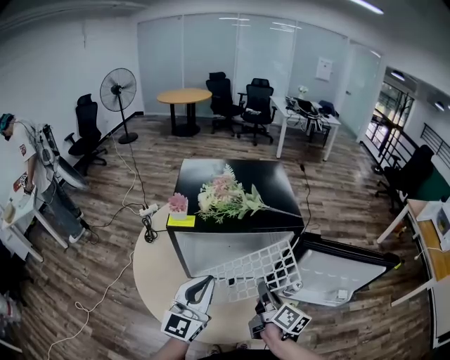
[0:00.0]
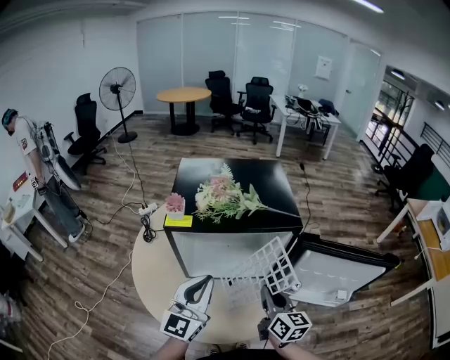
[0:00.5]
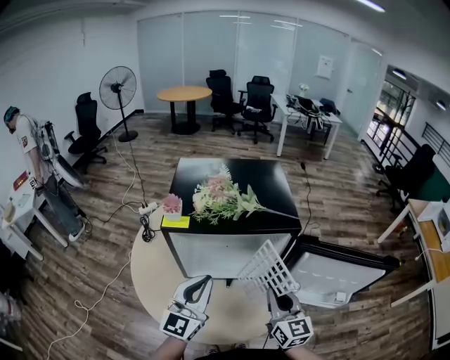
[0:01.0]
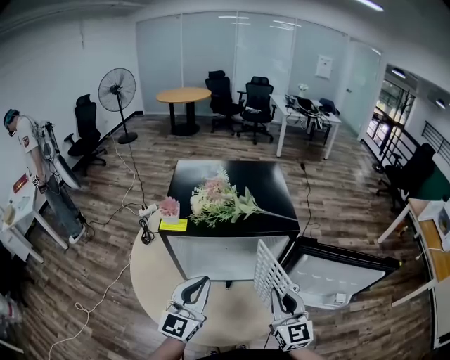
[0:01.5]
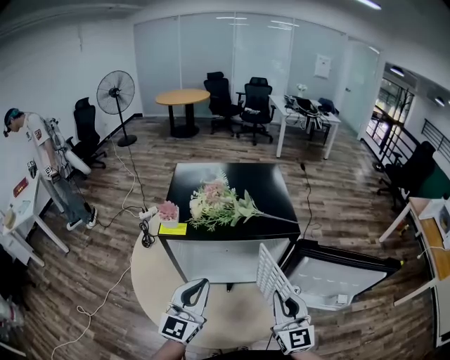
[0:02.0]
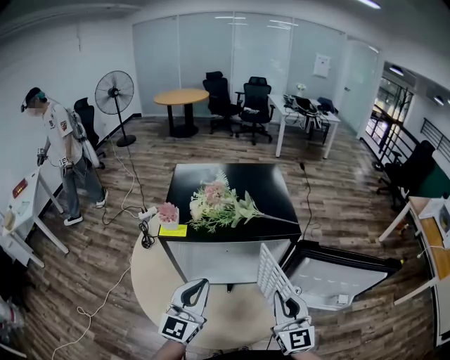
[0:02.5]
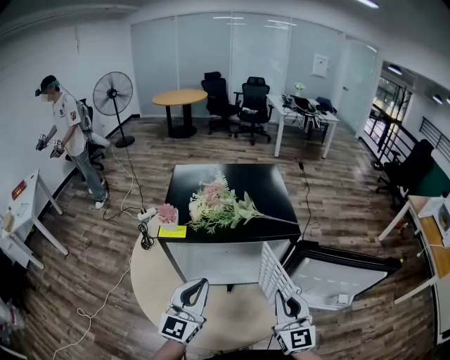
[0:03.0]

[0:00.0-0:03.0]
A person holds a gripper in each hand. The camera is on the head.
0:00.0 to 0:01.5: The right gripper shifts about 5 cm upward, and rolls counterclockwise, seen from behind, by some 60 degrees.
0:01.5 to 0:03.0: There are only small adjustments of the grippers.

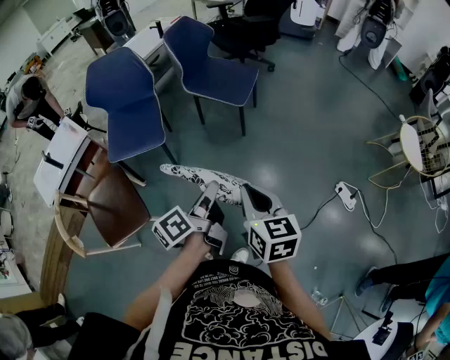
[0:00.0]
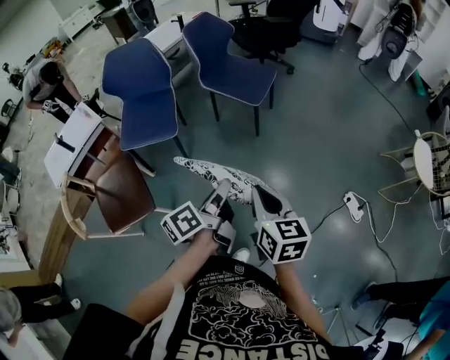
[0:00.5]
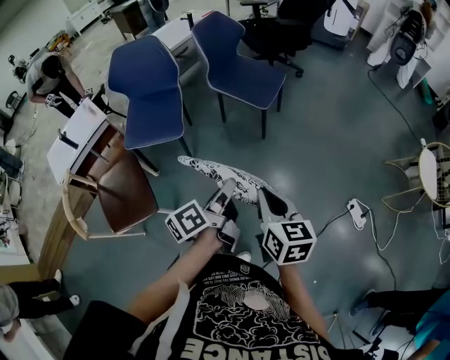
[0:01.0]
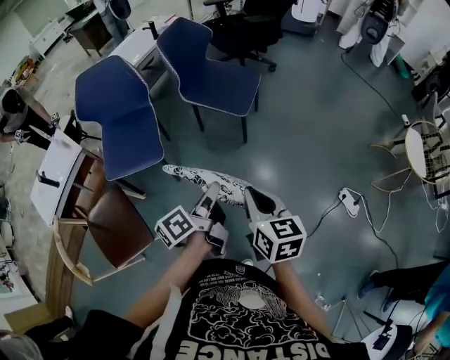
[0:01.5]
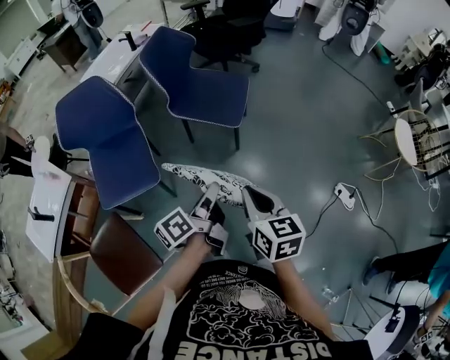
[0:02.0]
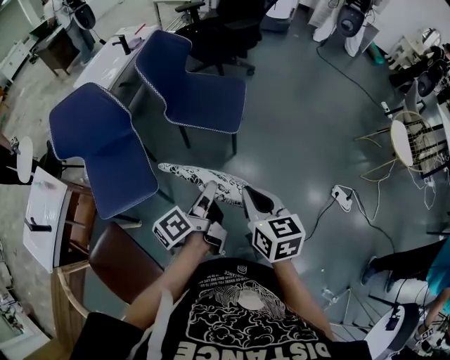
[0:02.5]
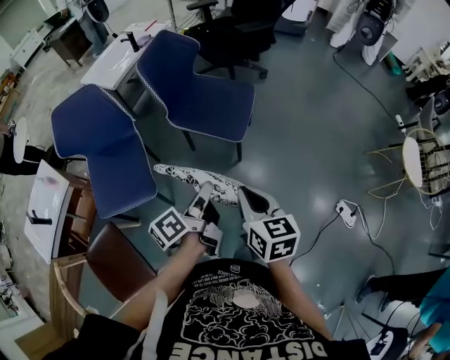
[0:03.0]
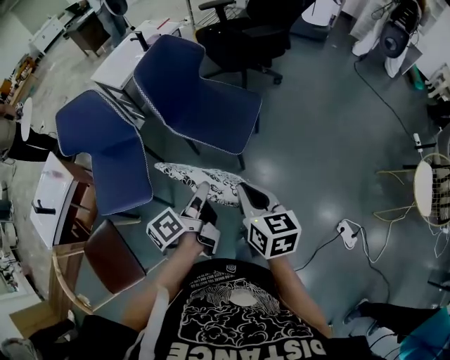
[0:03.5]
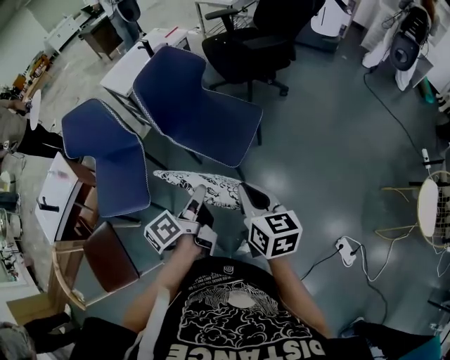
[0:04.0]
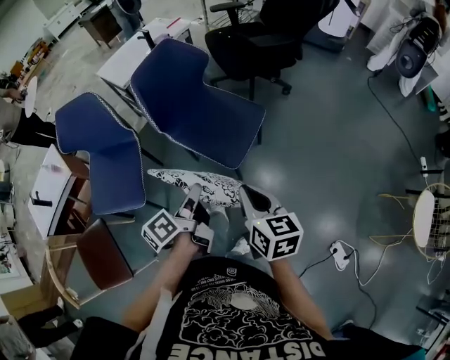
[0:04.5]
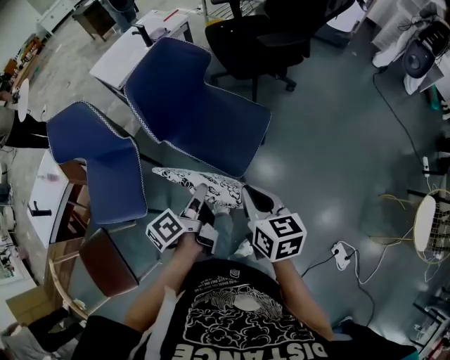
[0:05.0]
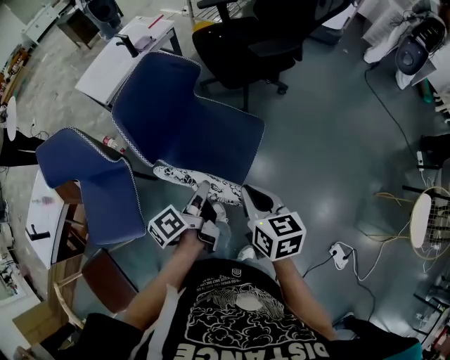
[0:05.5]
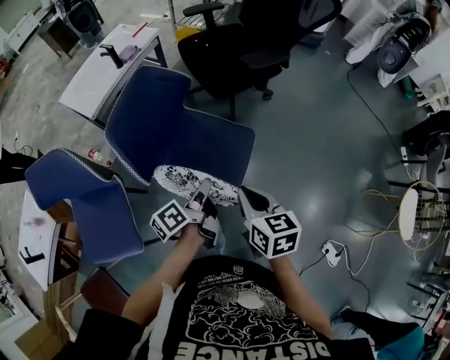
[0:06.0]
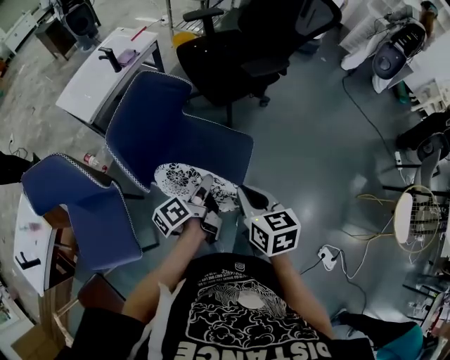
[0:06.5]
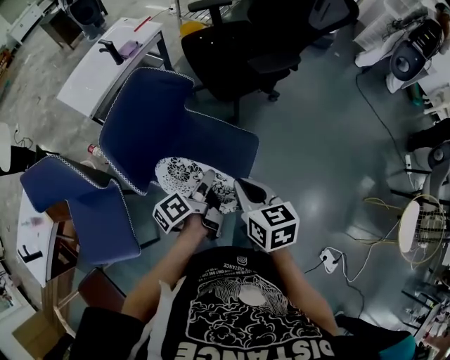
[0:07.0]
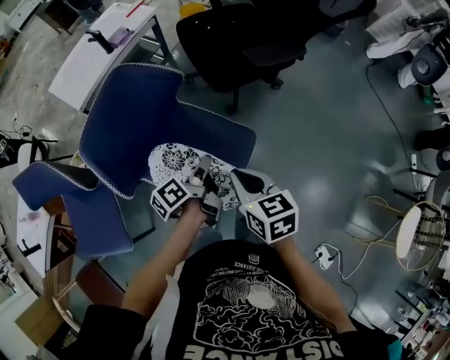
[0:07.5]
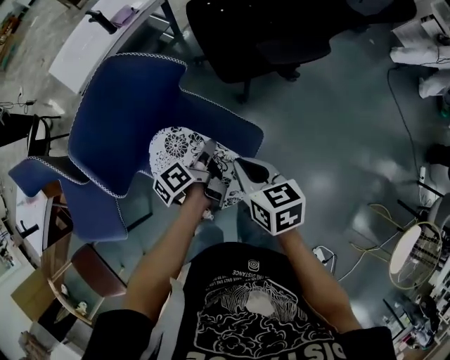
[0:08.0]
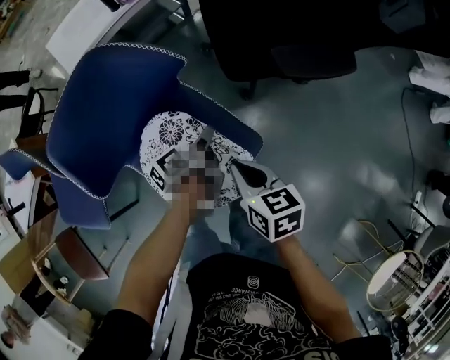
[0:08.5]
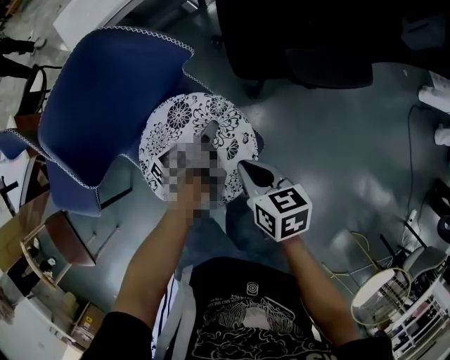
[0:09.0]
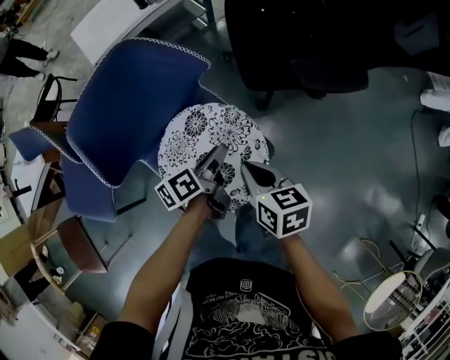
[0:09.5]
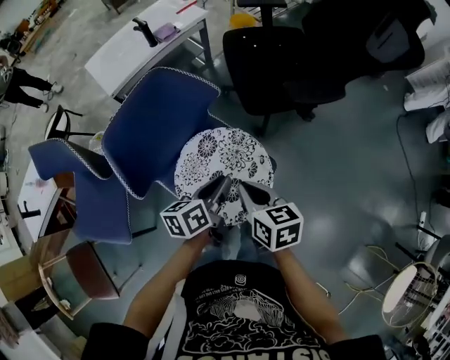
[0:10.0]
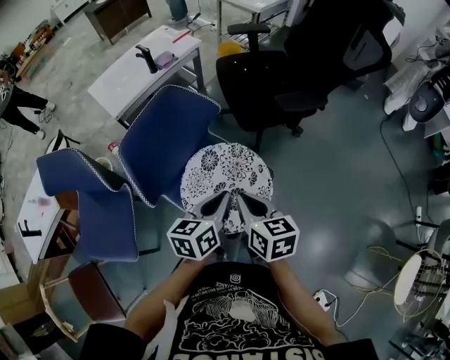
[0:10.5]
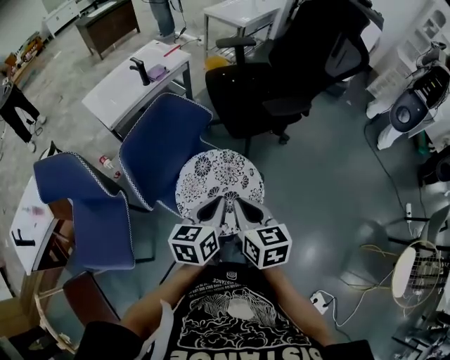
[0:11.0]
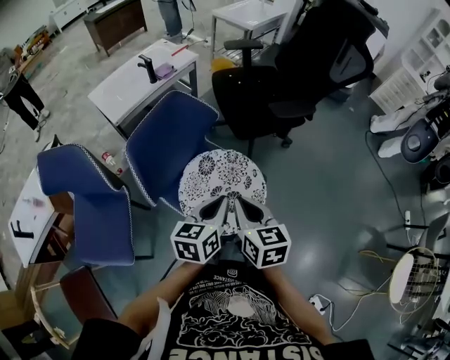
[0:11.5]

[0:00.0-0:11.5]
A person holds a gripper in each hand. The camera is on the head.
0:00.0 to 0:02.0: The right gripper ends up about 20 cm from where it was.
0:02.0 to 0:04.0: The right gripper ends up approximately 25 cm from where it was.
0:04.0 to 0:06.0: The right gripper changes place by about 20 cm.
0:06.0 to 0:07.5: The right gripper moves approximately 15 cm.
0:07.5 to 0:09.5: The right gripper is displaced downward by some 10 cm.
0:09.5 to 0:11.5: The right gripper heads upward, covering approximately 15 cm, and turns by about 30 degrees.

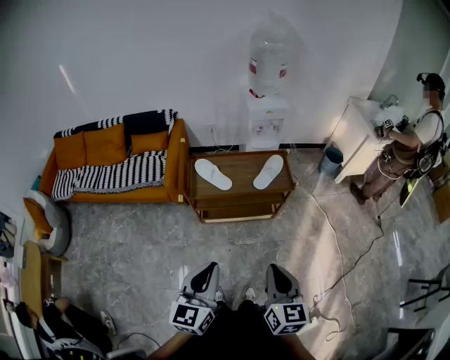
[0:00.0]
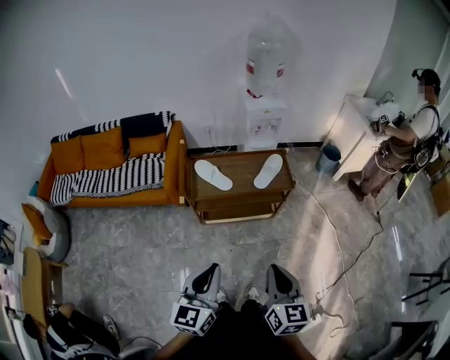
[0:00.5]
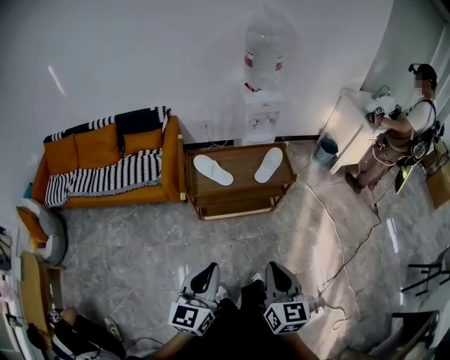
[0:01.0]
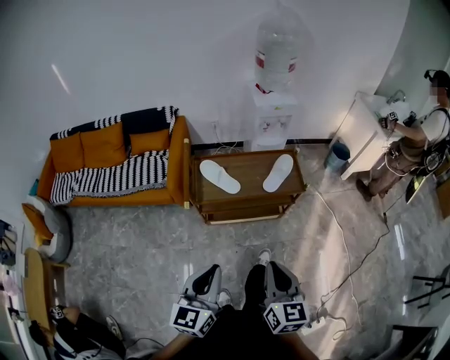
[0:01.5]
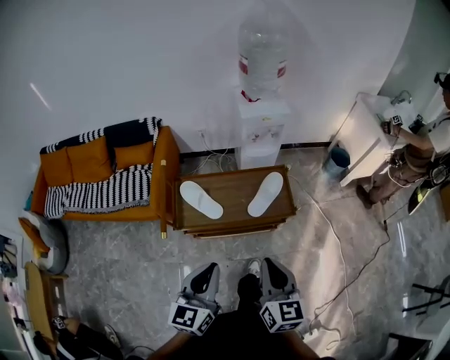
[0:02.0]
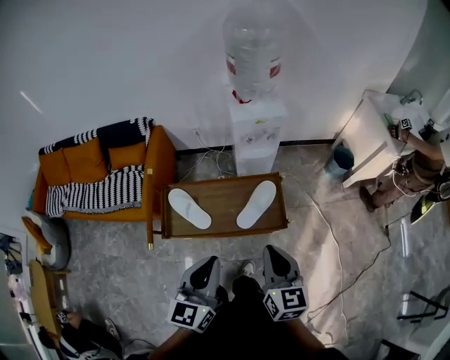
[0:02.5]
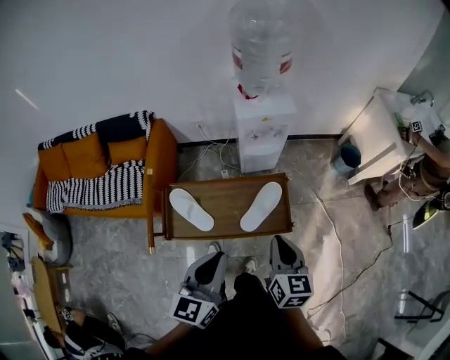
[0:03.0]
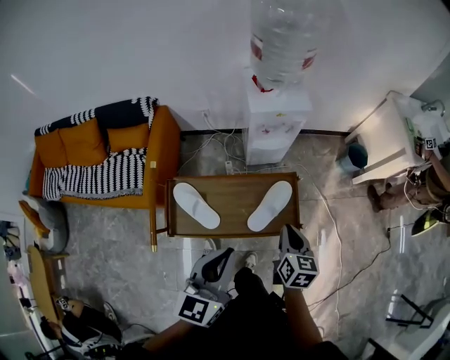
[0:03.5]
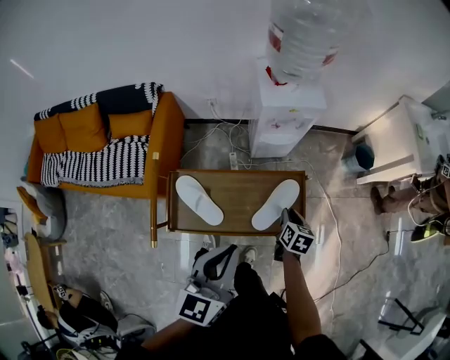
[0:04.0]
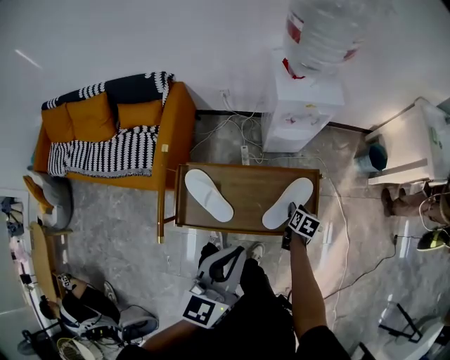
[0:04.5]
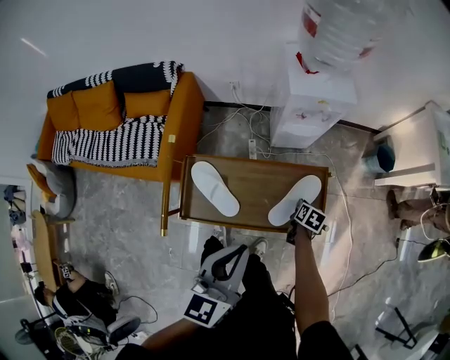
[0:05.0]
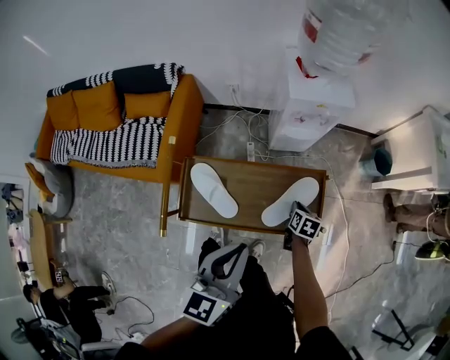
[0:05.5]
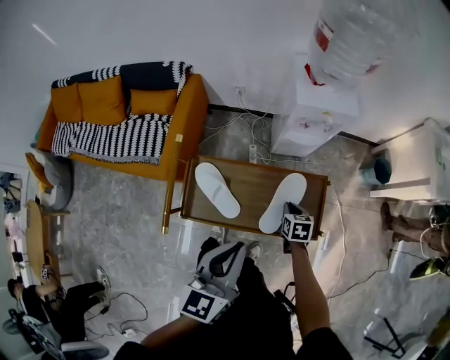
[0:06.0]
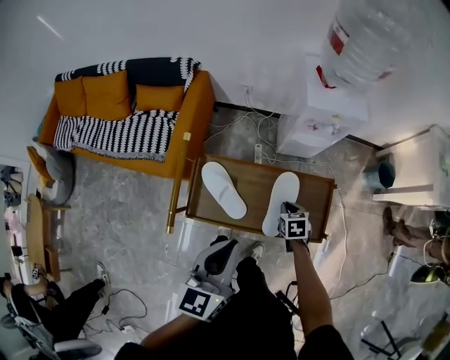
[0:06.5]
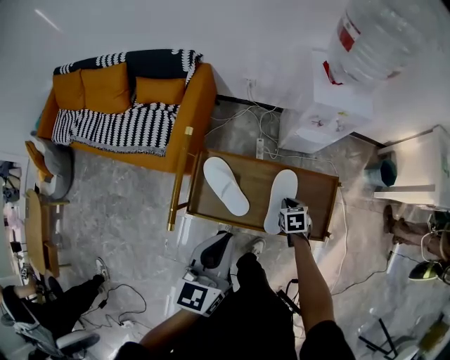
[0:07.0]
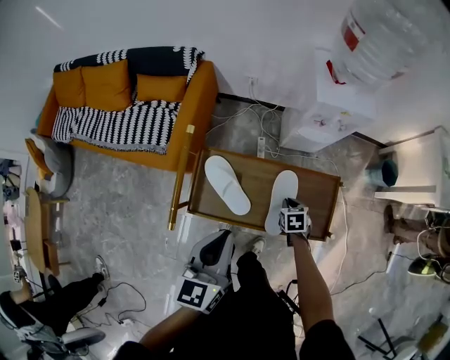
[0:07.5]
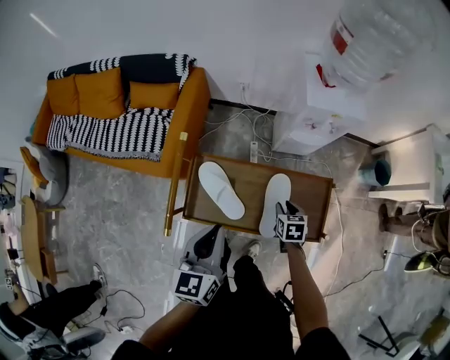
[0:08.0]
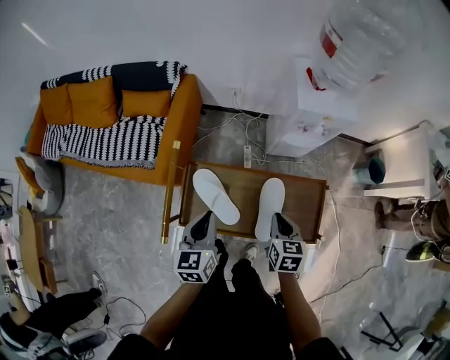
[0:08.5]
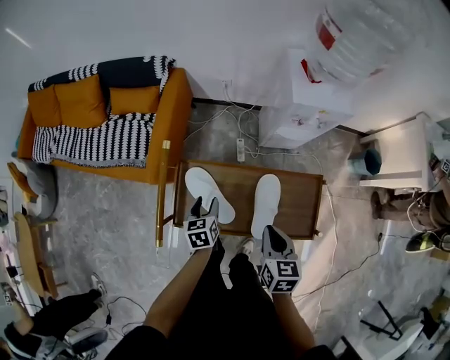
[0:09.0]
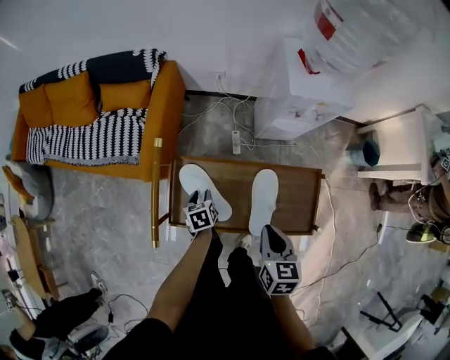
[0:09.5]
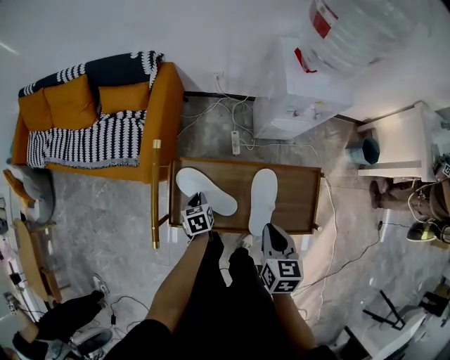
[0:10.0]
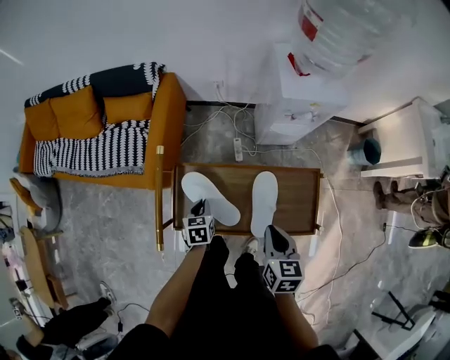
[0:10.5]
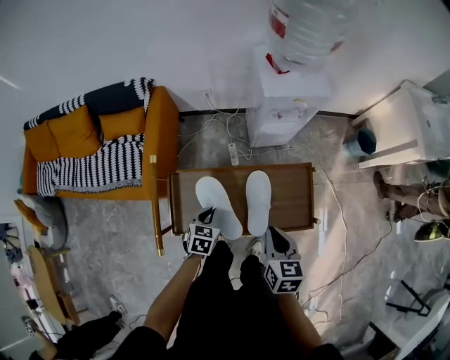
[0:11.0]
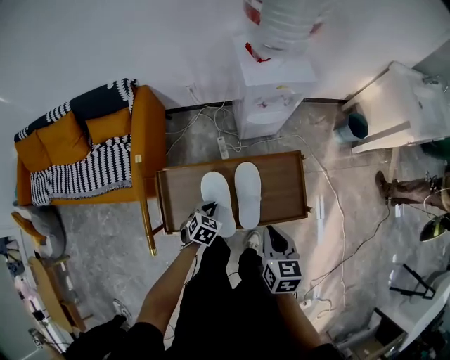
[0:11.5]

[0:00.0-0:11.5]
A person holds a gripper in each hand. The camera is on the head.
0:00.0 to 0:02.0: Both grippers move forward, roughly 25 cm.
0:02.0 to 0:04.0: The left gripper goes some 25 cm forward; the right gripper travels forward and downward by some 40 cm, and points its fingers roughly 30 degrees further downward.
0:04.0 to 0:06.0: The right gripper moves to the left and downward, about 10 cm, and changes its angle by approximately 20 degrees.
0:06.0 to 0:07.5: The left gripper travels to the left by about 10 cm. Meanwhile the right gripper moves downward, roughly 5 cm.
0:07.5 to 0:09.5: The left gripper moves downward, about 35 cm, tips its fingers downward by roughly 40 degrees, and opens its fingers, while the right gripper goes roughly 20 cm upward, turns by approximately 30 degrees, and opens, then closes once more.
0:09.5 to 0:11.5: The right gripper travels to the right by some 5 cm, while the left gripper shifts roughly 10 cm to the right, twists approximately 50 degrees clockwise, seen from behind, and closes up.

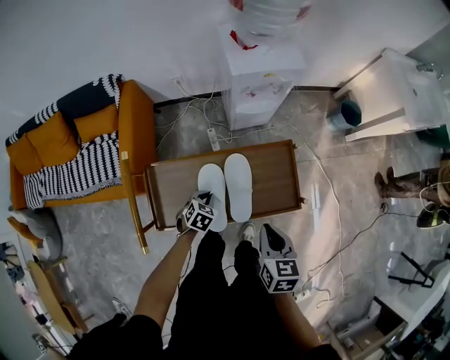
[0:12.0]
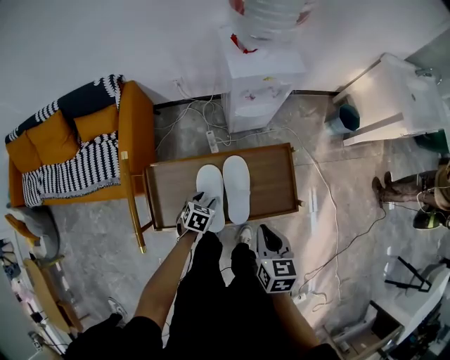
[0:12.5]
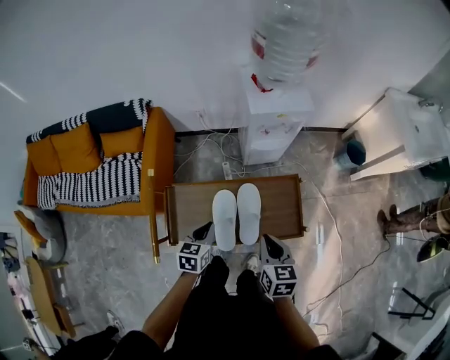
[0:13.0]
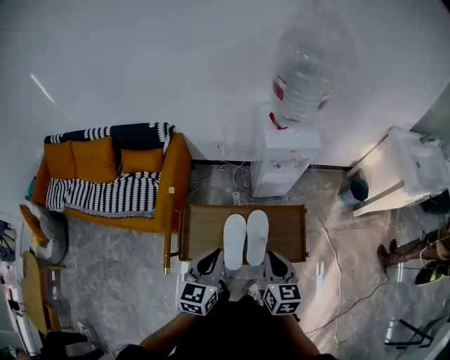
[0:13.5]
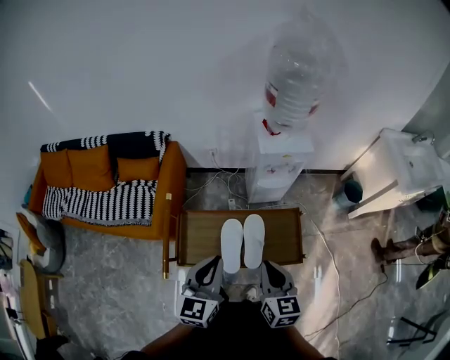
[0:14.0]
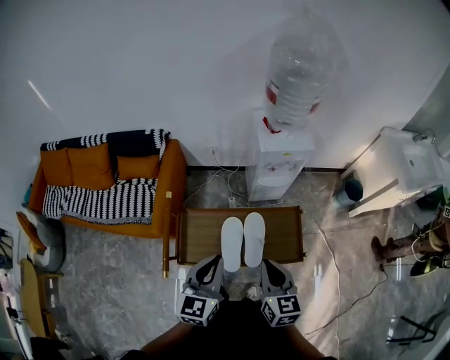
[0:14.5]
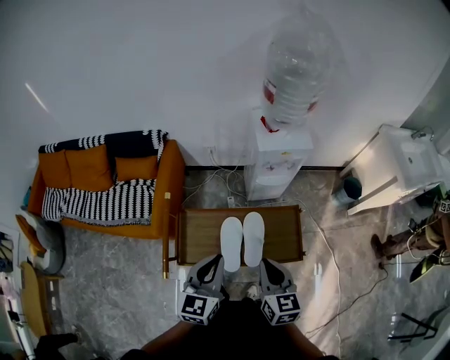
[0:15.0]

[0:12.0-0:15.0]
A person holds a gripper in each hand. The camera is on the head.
0:12.0 to 0:13.5: The right gripper shifts some 15 cm upward and to the left, while the left gripper is displaced upward by about 35 cm, tilts its fingers approximately 40 degrees upward, and opens, then closes again.
0:13.5 to 0:15.0: The right gripper shifts by approximately 5 cm.
